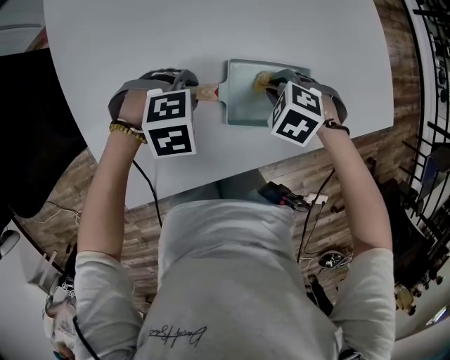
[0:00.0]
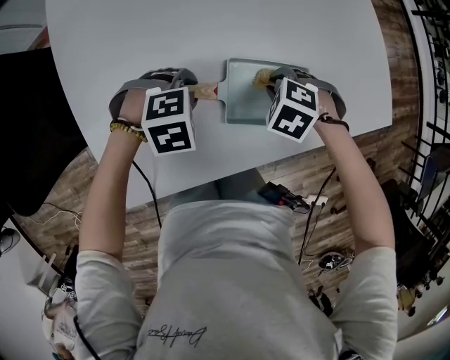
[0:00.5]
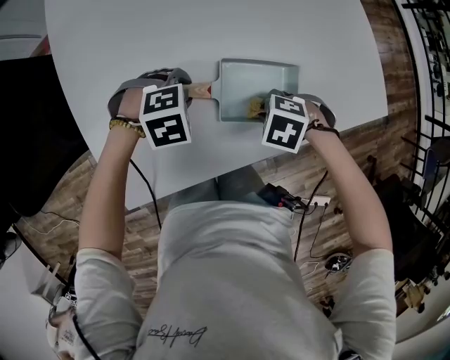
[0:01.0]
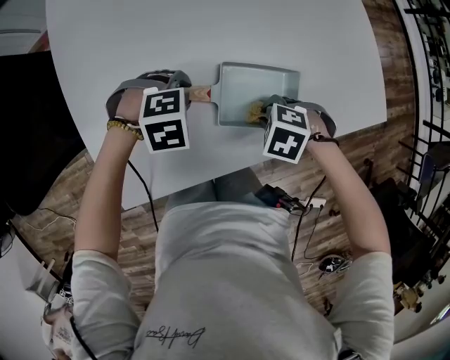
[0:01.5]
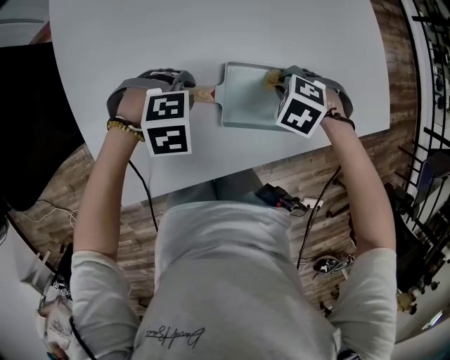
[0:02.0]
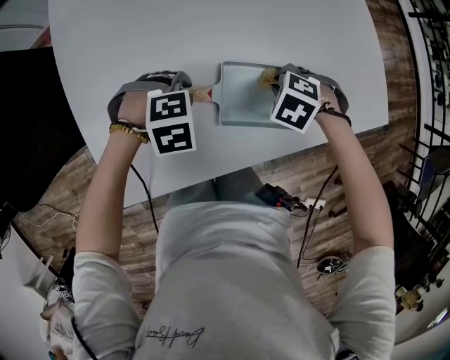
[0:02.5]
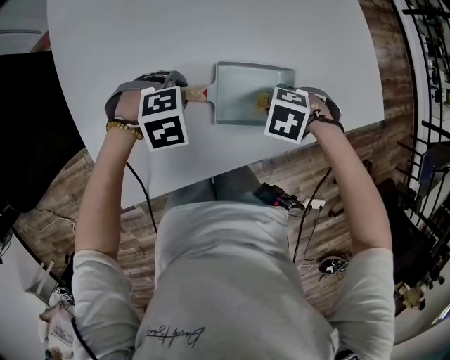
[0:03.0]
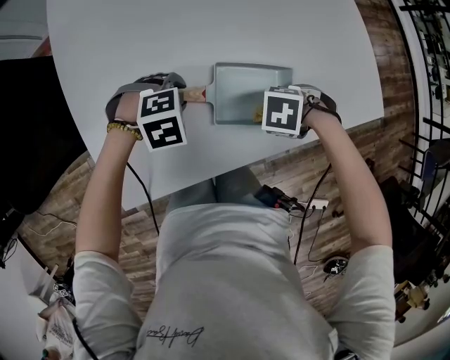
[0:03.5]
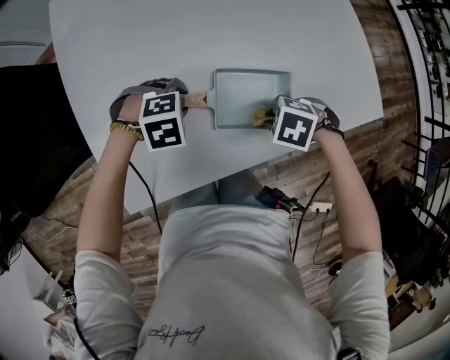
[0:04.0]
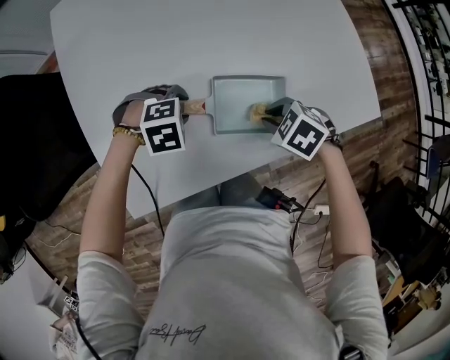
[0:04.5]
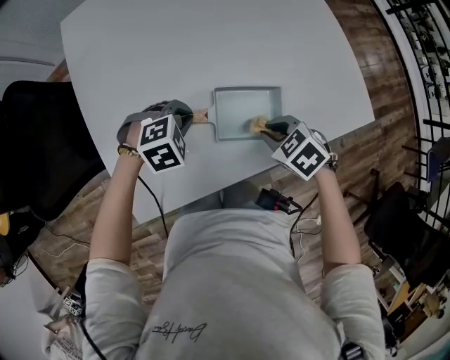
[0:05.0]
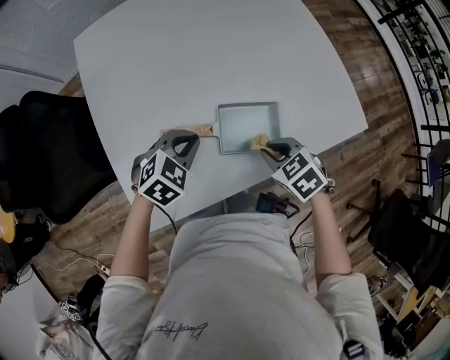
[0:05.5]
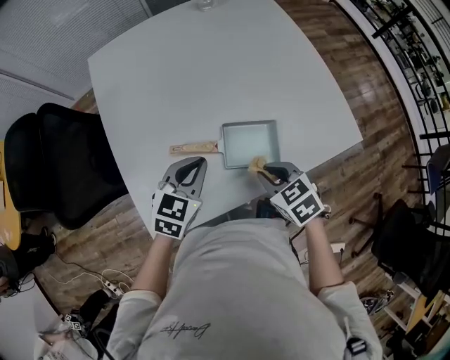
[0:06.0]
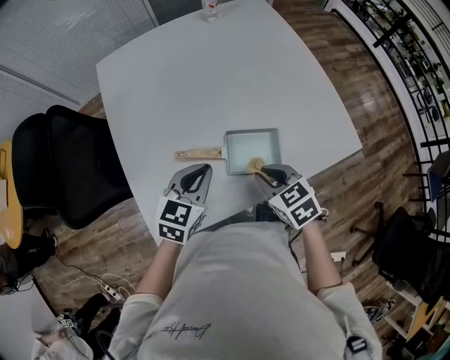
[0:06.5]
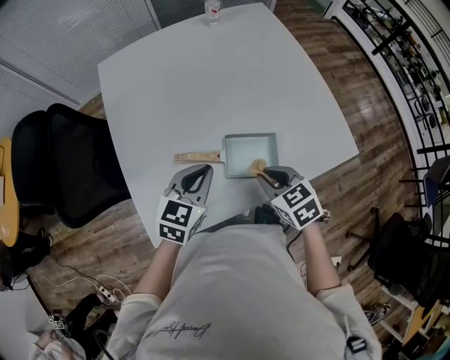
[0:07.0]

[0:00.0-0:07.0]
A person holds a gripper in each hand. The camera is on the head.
0:02.0 to 0:03.5: The right gripper moves roughly 10 cm, and rotates about 30 degrees.
0:03.5 to 0:05.0: The grippers both shift upward by roughly 5 cm. The left gripper closes up, while the right gripper swivels about 50 degrees.
0:05.0 to 0:07.0: Both grippers travel together upward, about 10 cm. The left gripper points its fingers roughly 40 degrees further upward, while the right gripper rotates about 20 degrees.

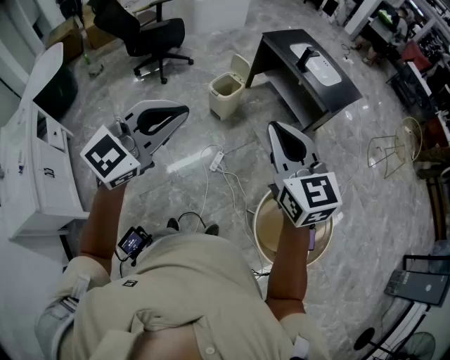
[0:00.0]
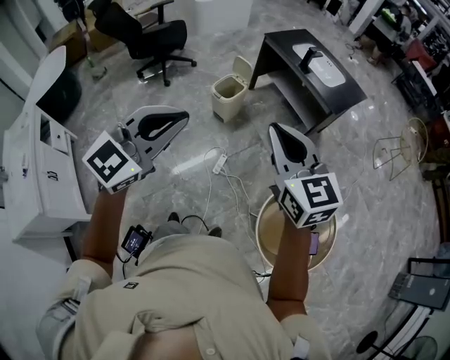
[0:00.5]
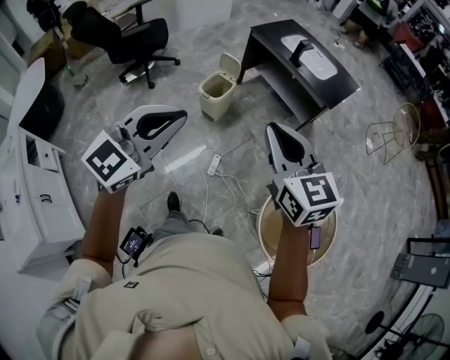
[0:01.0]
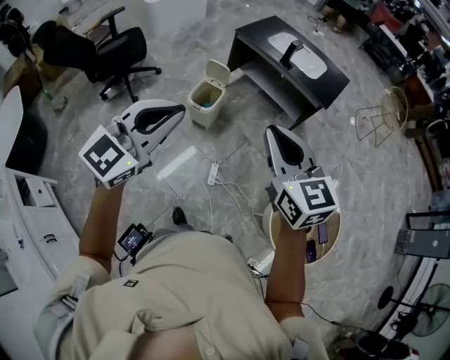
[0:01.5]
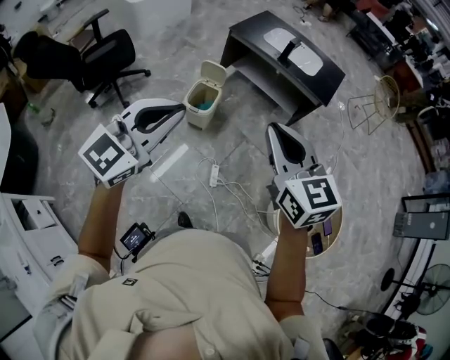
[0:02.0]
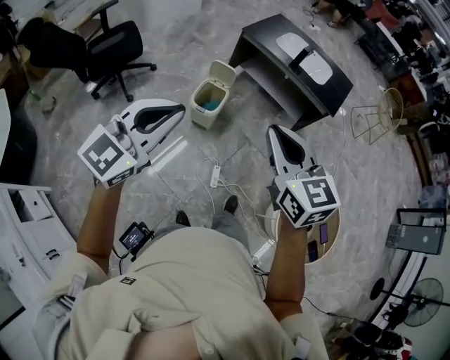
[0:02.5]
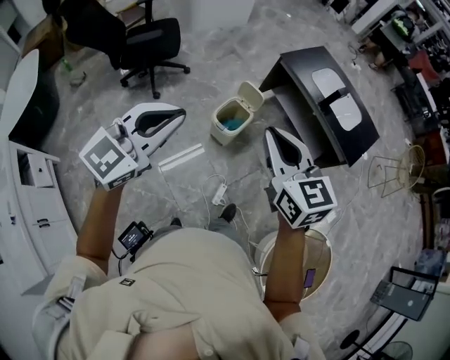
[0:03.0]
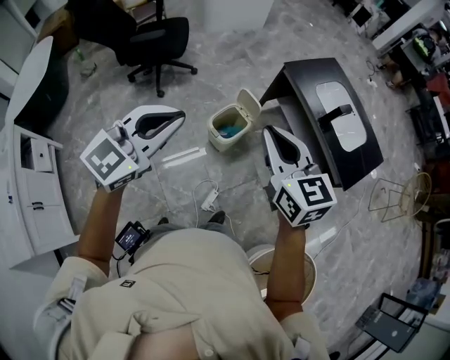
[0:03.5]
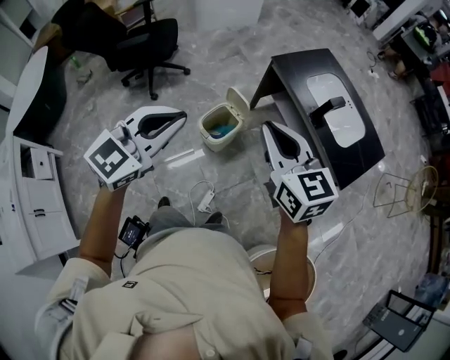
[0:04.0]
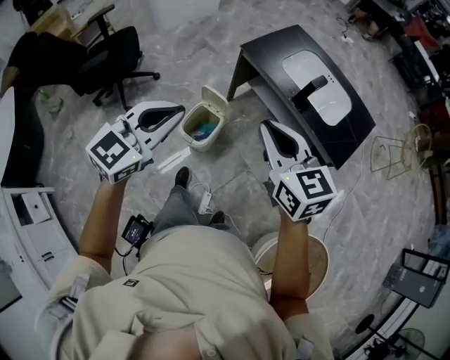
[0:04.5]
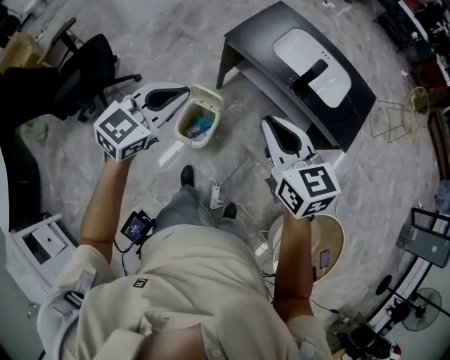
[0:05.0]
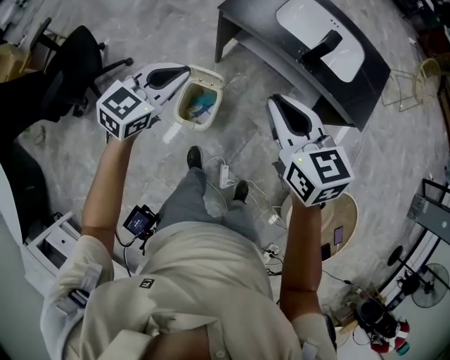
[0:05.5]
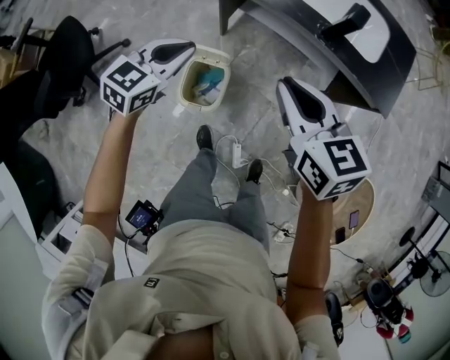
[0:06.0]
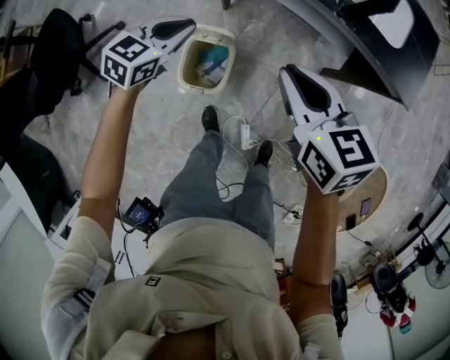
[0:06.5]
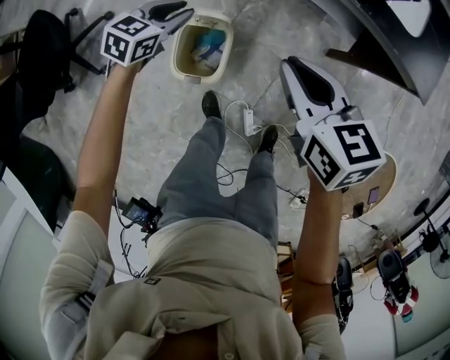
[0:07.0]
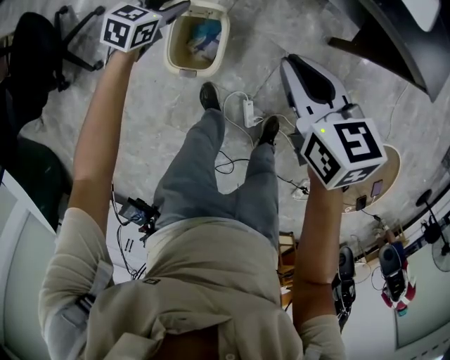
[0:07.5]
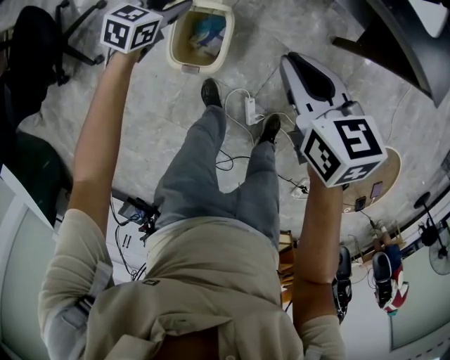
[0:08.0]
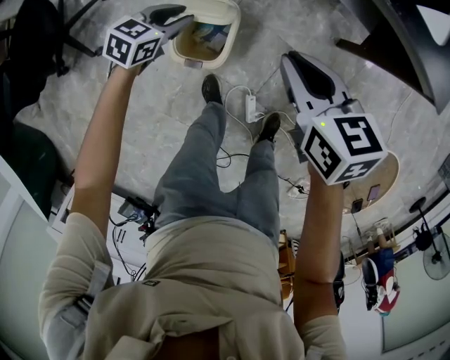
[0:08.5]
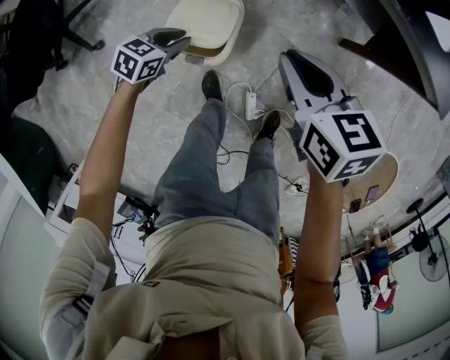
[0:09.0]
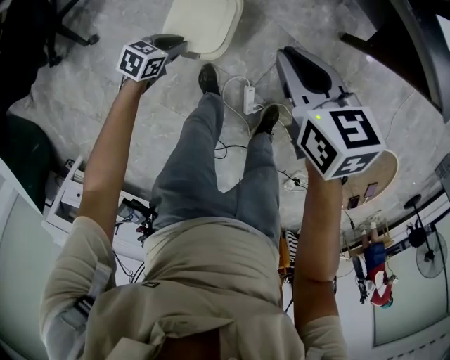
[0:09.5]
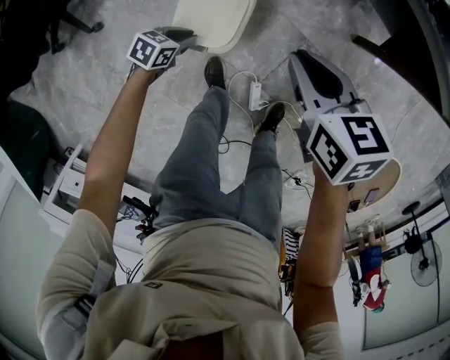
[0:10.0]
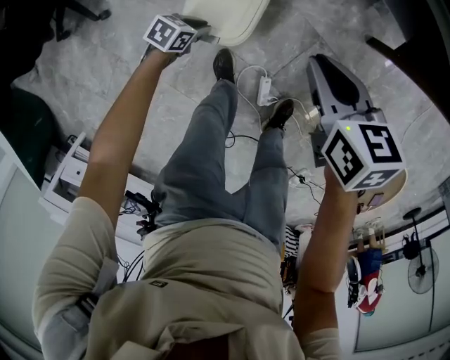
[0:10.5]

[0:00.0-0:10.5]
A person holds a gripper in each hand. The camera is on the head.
0:00.0 to 0:02.0: Both grippers move forward and to the left, approximately 30 cm. The right gripper changes its angle by about 20 degrees.
0:02.0 to 0:04.0: The right gripper moves some 35 cm, and rotates roughly 30 degrees, while the left gripper changes place by approximately 25 cm, and changes its angle by about 30 degrees.
0:04.0 to 0:06.5: Both grippers travel together downward, roughly 35 cm. The right gripper turns by some 40 degrees; the left gripper rotates approximately 40 degrees.
0:06.5 to 0:08.5: The grippers both shift downward by some 15 cm. The left gripper opens its fingers.
0:08.5 to 0:10.5: The left gripper shifts some 20 cm downward, and swivels roughly 30 degrees; the right gripper heads downward, covering roughly 10 cm.

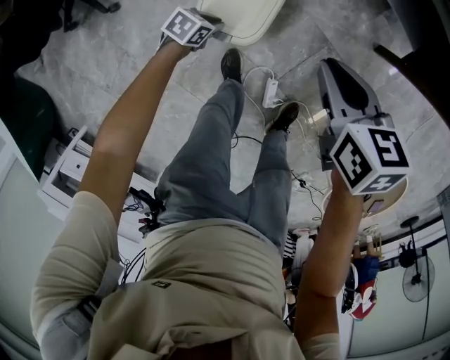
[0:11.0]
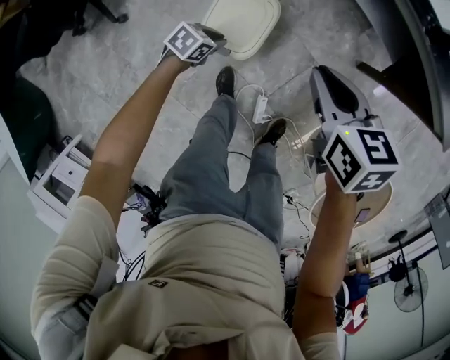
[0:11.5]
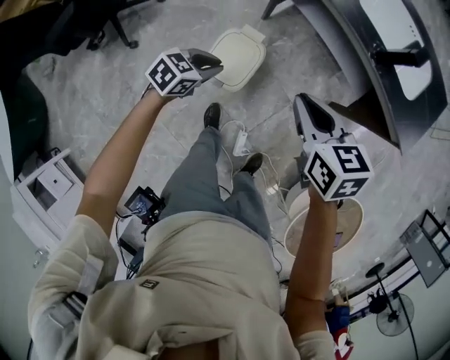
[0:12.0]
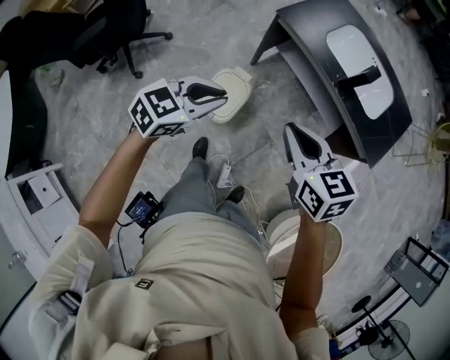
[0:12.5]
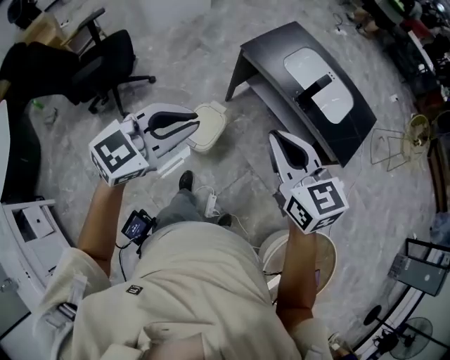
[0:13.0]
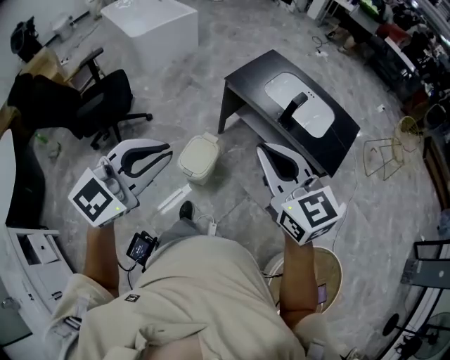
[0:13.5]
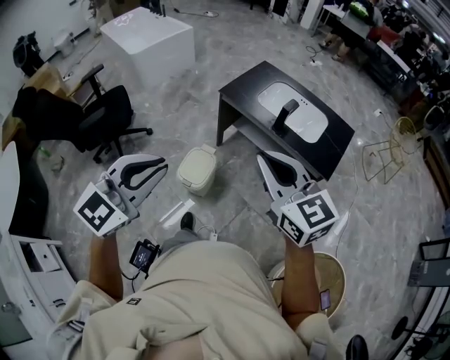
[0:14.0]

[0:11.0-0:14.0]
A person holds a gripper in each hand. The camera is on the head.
0:11.0 to 0:12.5: The right gripper heads upward, covering roughly 35 cm, and turns by roughly 30 degrees. Meanwhile the left gripper moves upward, about 60 cm, and points its fingers some 30 degrees further upward.
0:12.5 to 0:14.0: Both grippers travel together upward and backward, some 30 cm. The right gripper swivels approximately 30 degrees. The left gripper turns by approximately 30 degrees.

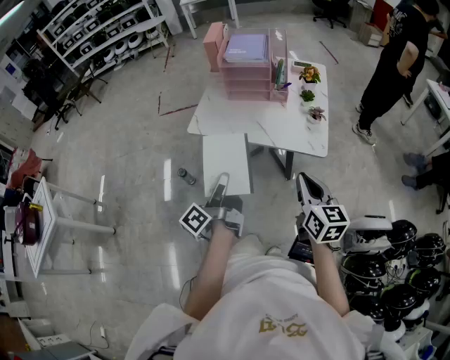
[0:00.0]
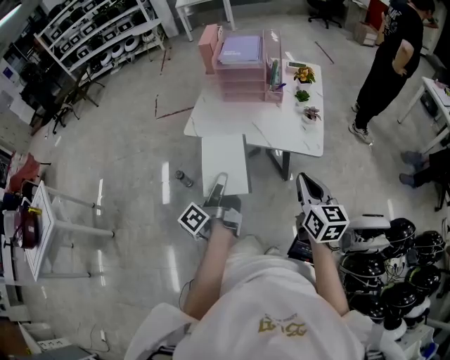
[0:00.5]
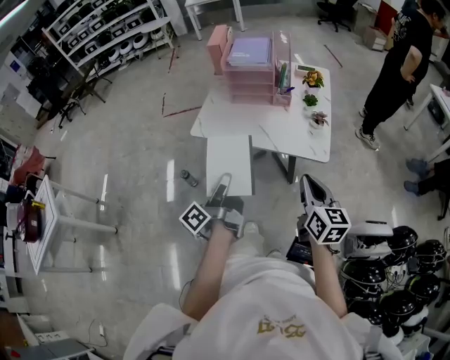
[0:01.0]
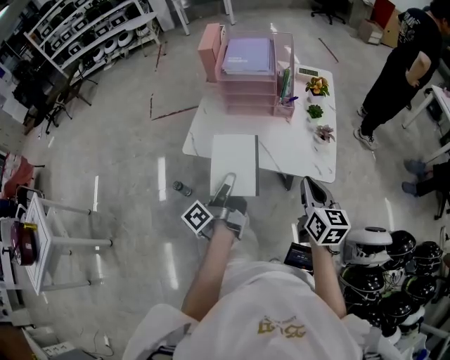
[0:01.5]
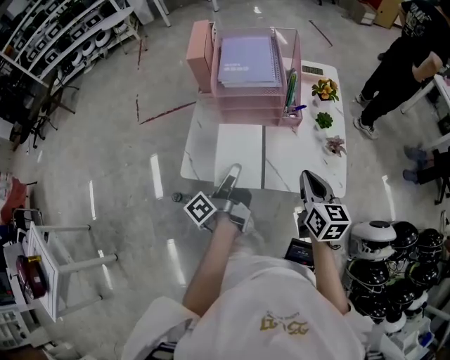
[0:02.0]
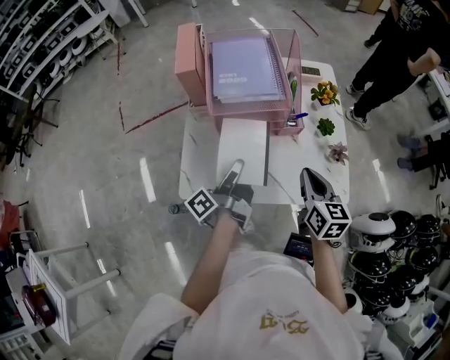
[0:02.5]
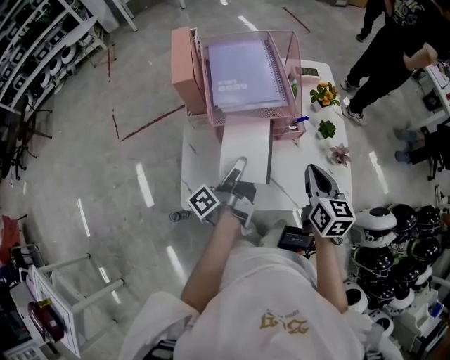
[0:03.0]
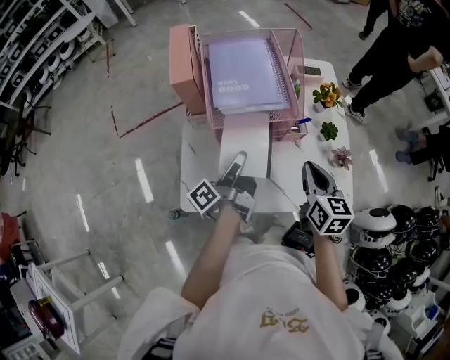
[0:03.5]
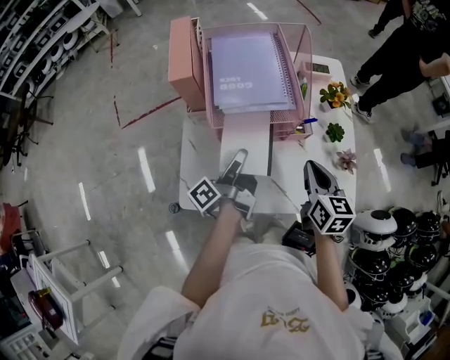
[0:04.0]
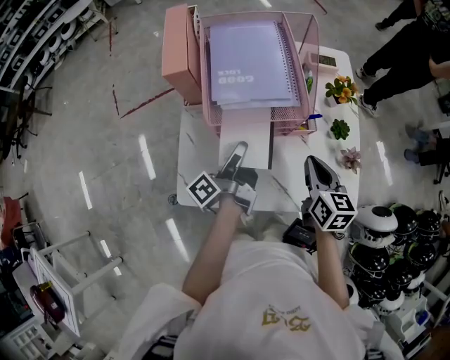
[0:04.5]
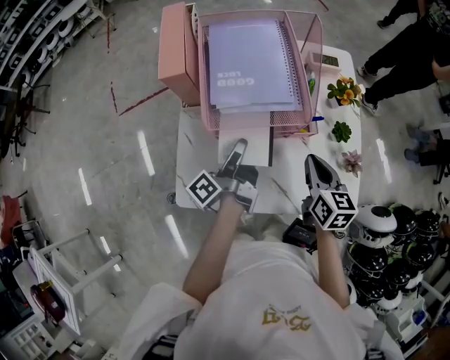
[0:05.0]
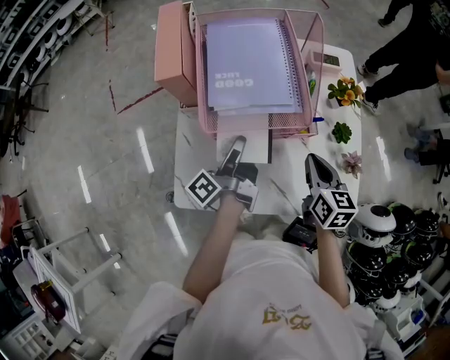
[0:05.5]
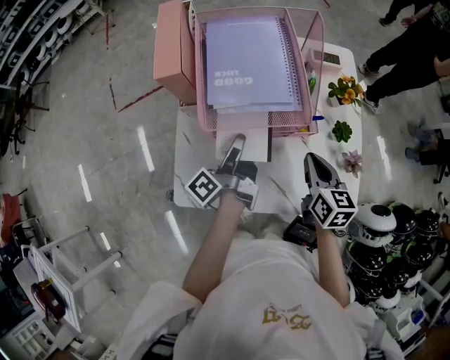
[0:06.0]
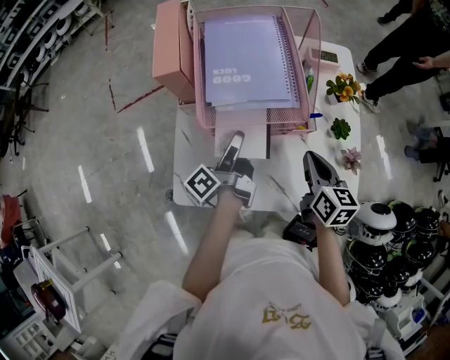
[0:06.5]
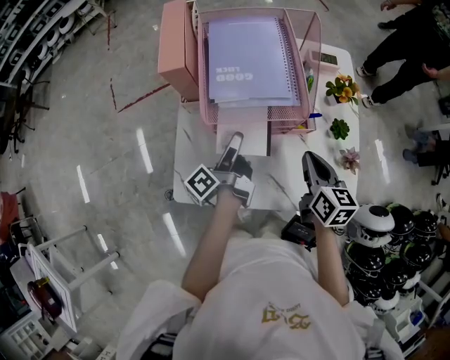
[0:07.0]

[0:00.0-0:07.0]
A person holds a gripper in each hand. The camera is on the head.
0:00.0 to 0:02.0: The right gripper changes place by about 25 cm.
0:02.0 to 0:03.5: The right gripper ends up approximately 15 cm from where it was.
0:03.5 to 0:05.0: The right gripper shifts by roughly 5 cm.
